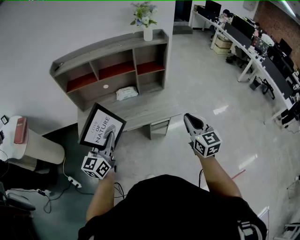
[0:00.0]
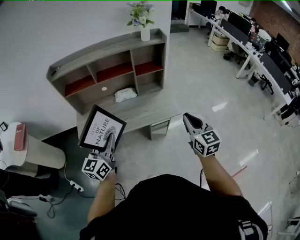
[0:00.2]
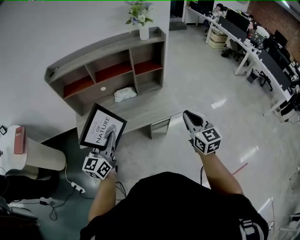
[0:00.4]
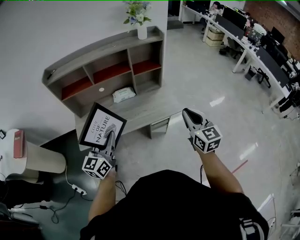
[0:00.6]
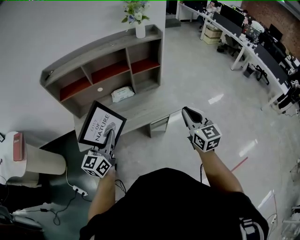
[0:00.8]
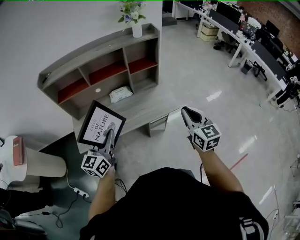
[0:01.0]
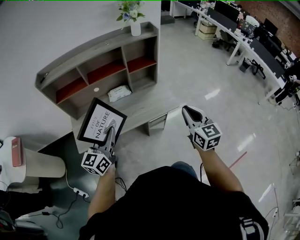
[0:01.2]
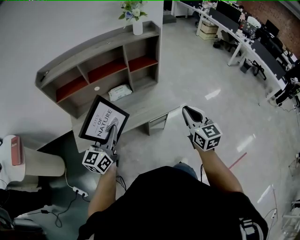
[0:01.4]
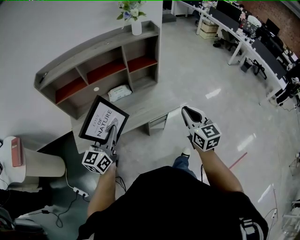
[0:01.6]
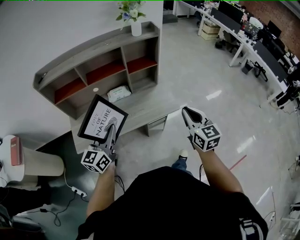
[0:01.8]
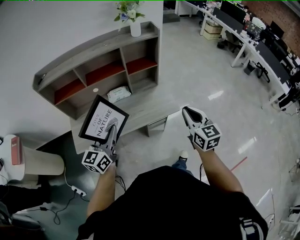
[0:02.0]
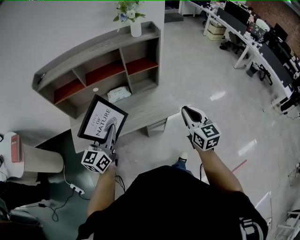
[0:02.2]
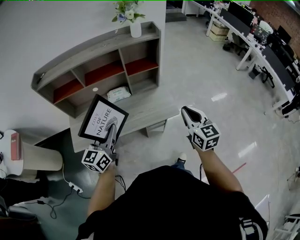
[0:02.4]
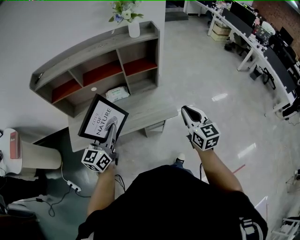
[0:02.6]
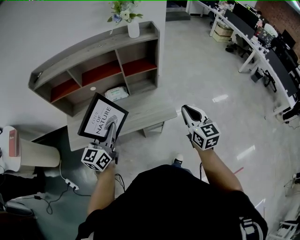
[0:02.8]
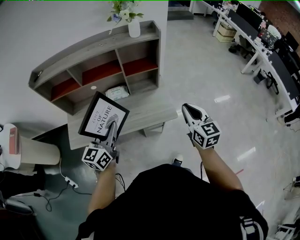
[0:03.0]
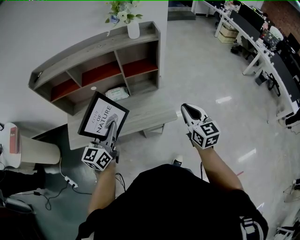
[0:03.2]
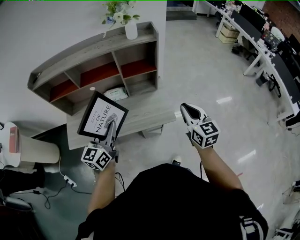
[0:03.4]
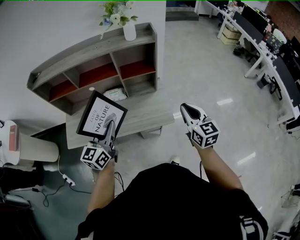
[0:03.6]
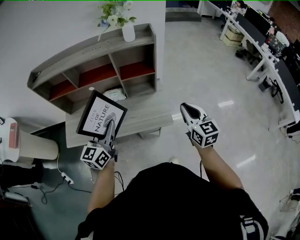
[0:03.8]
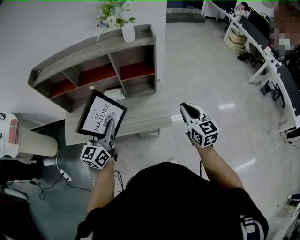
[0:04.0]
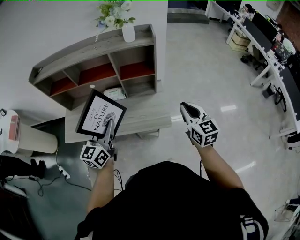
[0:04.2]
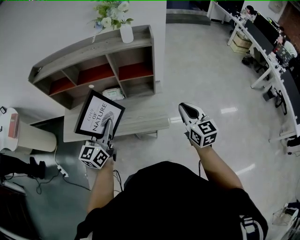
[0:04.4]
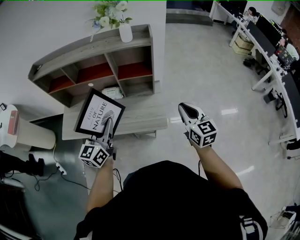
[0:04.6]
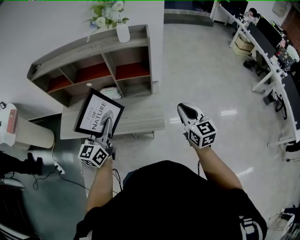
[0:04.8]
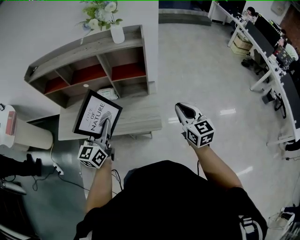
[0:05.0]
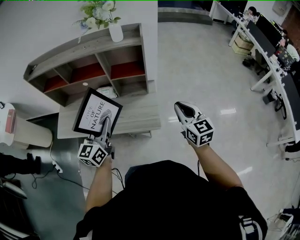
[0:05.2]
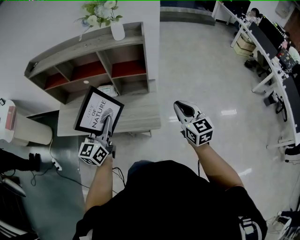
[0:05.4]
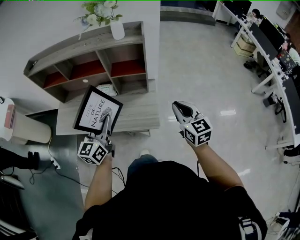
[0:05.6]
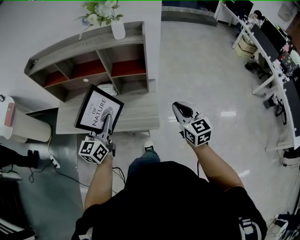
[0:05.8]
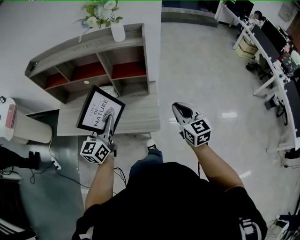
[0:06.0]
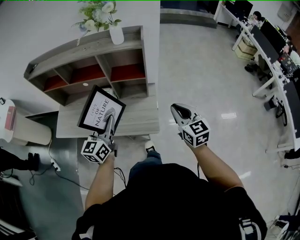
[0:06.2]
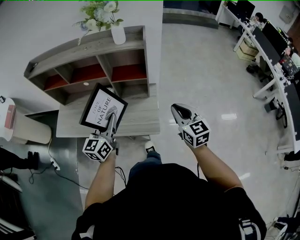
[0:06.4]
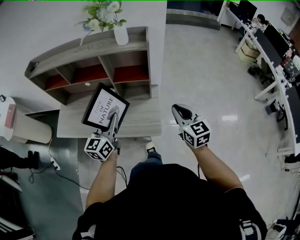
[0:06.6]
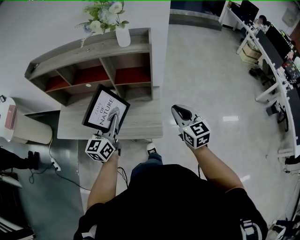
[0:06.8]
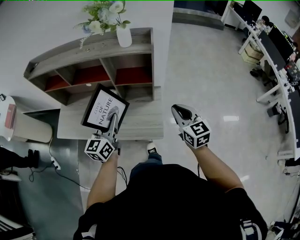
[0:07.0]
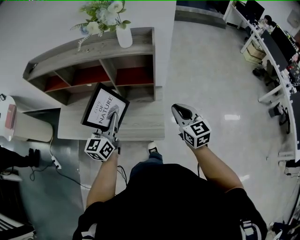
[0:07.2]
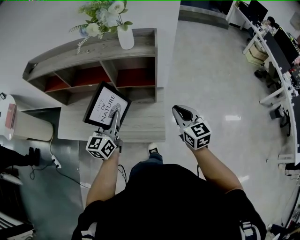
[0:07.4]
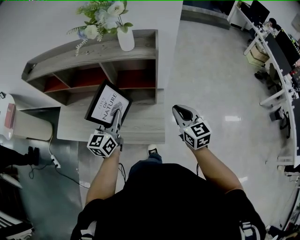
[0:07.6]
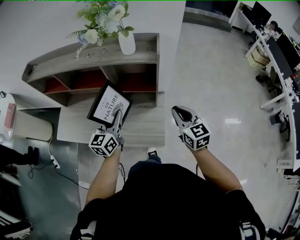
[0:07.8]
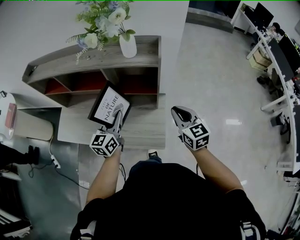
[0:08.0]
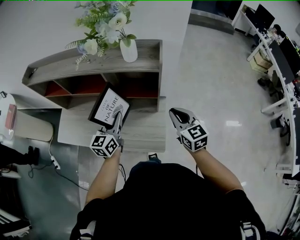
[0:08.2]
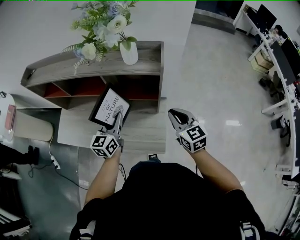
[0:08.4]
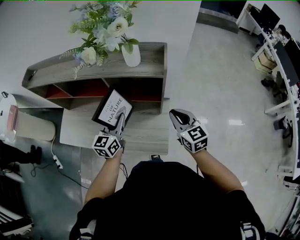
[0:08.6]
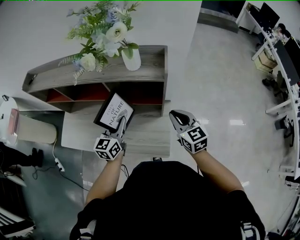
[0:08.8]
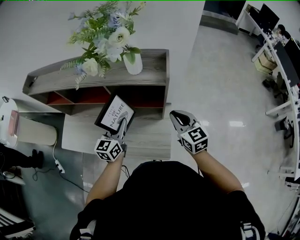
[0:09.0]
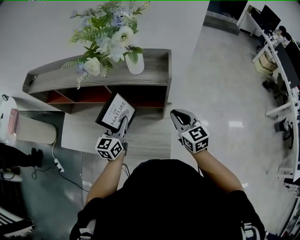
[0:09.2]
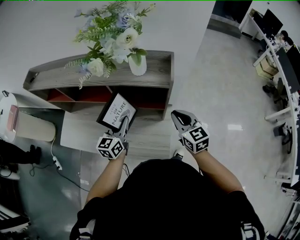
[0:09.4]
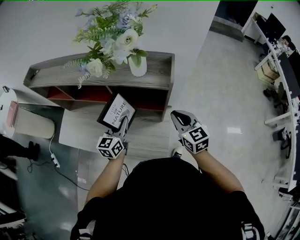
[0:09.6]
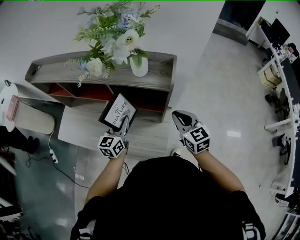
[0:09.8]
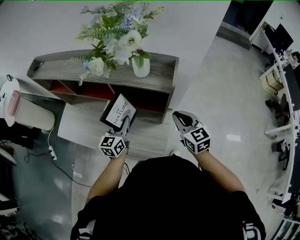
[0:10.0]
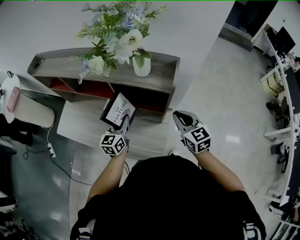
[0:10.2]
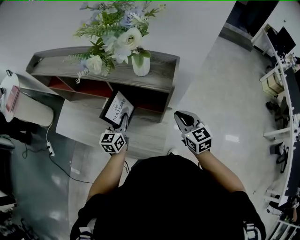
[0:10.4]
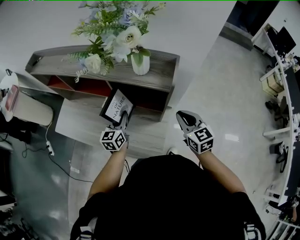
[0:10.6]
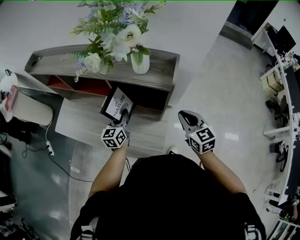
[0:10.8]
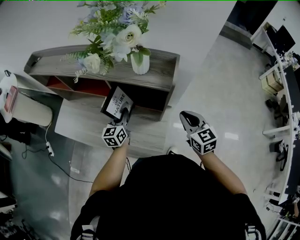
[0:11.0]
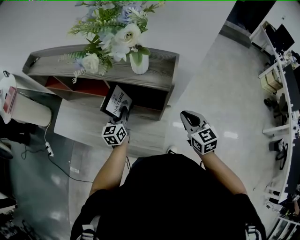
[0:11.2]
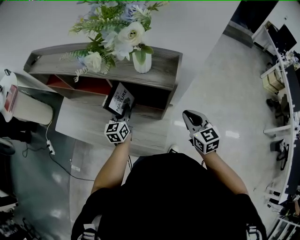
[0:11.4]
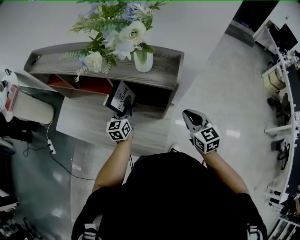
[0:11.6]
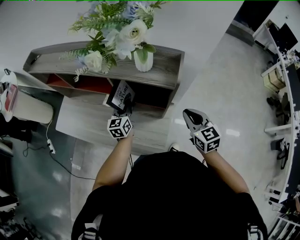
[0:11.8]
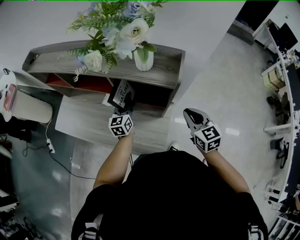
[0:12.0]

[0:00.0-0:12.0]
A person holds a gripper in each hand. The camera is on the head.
0:00.0 to 0:01.6: The right gripper changes place by about 5 cm; the left gripper heads forward, covering approximately 10 cm.
0:01.6 to 0:03.0: The two grippers go about 15 cm forward and to the right.
0:03.0 to 0:04.4: The right gripper goes some 10 cm to the right and forward, while the left gripper moves to the right, about 10 cm.
0:04.4 to 0:06.0: The left gripper travels to the right by approximately 5 cm. Meanwhile the right gripper shifts by approximately 5 cm.
0:06.0 to 0:07.6: Both grippers travel together forward, approximately 15 cm.
0:07.6 to 0:09.0: The grippers both shift forward by about 10 cm.
0:09.0 to 0:10.4: The left gripper changes place by some 5 cm.
0:10.4 to 0:12.0: The left gripper is displaced forward by roughly 5 cm.

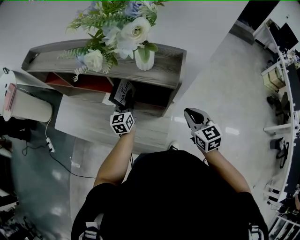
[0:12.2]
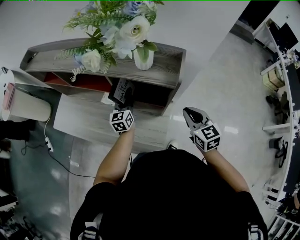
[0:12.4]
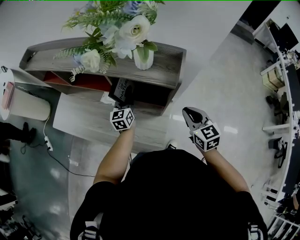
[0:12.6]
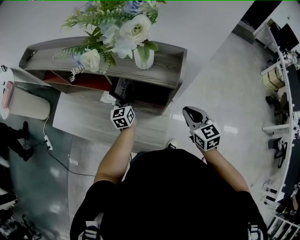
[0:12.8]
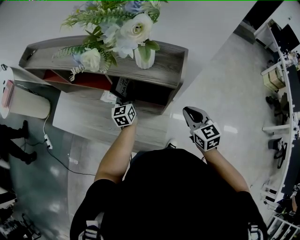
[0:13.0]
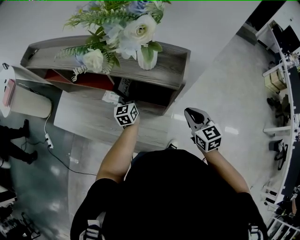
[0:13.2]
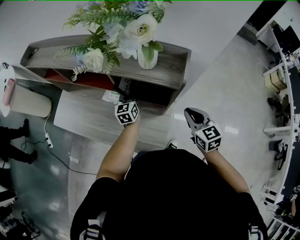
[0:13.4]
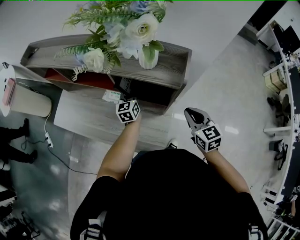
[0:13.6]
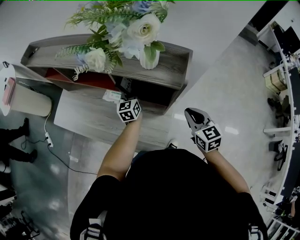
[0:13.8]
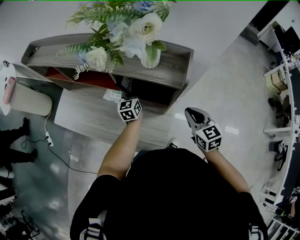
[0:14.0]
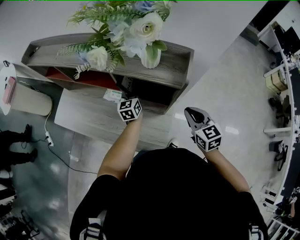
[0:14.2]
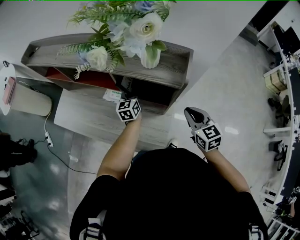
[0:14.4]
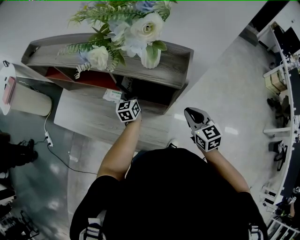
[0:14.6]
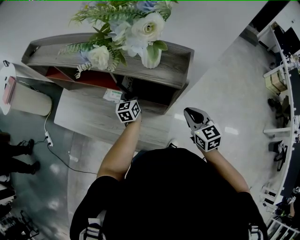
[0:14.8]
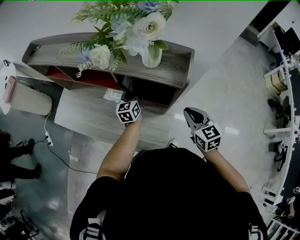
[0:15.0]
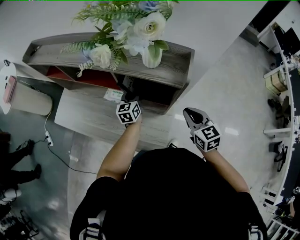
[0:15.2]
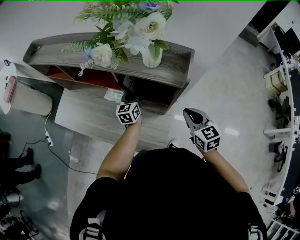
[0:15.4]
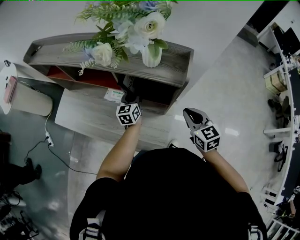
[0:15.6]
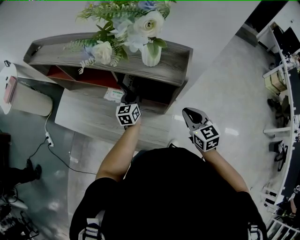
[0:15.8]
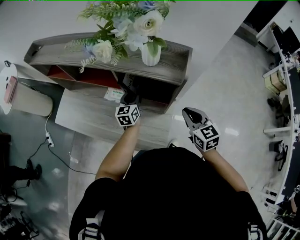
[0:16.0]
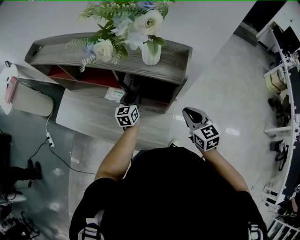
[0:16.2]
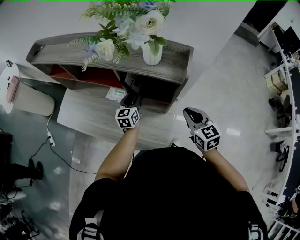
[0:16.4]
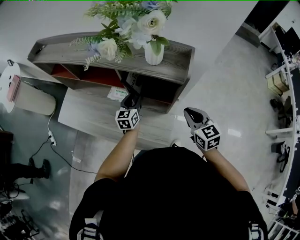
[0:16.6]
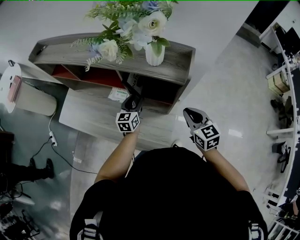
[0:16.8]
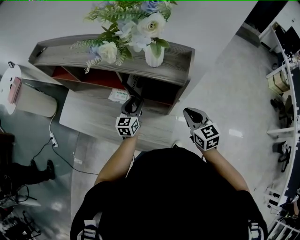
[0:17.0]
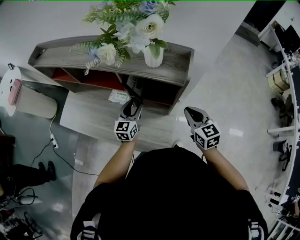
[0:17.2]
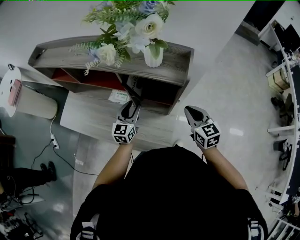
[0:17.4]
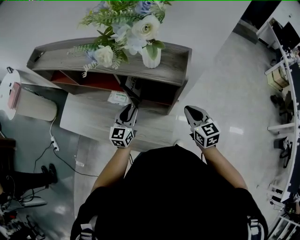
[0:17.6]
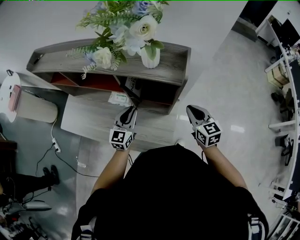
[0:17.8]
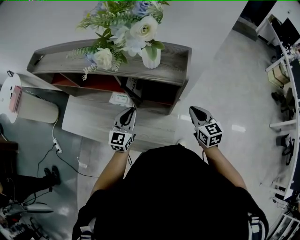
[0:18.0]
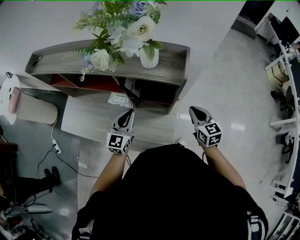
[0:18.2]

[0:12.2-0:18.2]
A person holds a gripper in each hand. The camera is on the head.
0:12.2 to 0:13.8: The left gripper ends up some 5 cm from where it was.
0:13.8 to 0:15.2: The grippers move only a little.
0:15.2 to 0:16.6: The left gripper moves about 5 cm, and opens up.
0:16.6 to 0:18.2: The left gripper goes roughly 10 cm backward and upward, changes its angle by approximately 20 degrees, and closes.

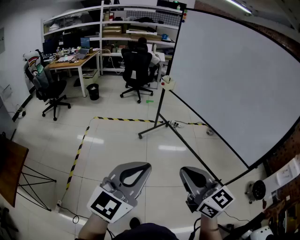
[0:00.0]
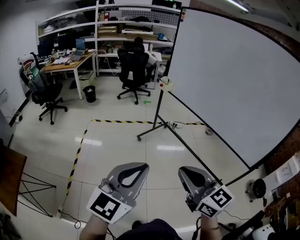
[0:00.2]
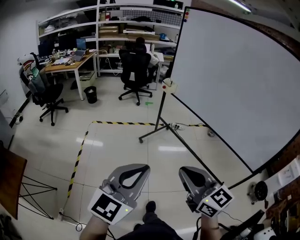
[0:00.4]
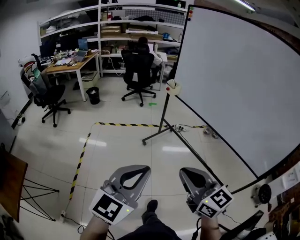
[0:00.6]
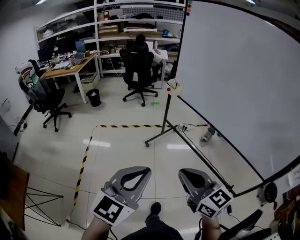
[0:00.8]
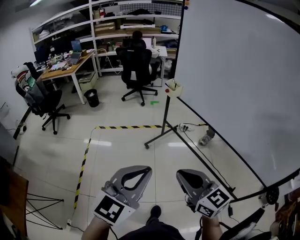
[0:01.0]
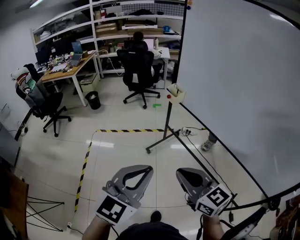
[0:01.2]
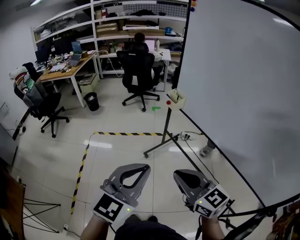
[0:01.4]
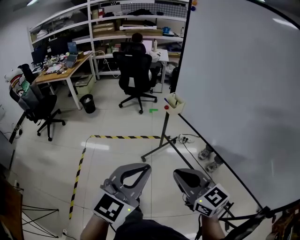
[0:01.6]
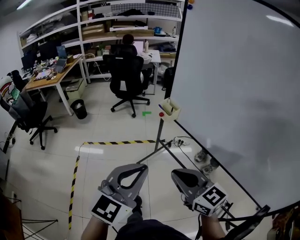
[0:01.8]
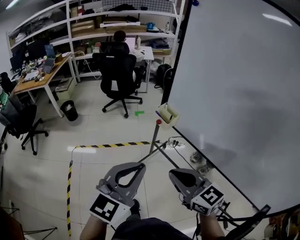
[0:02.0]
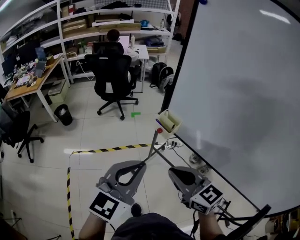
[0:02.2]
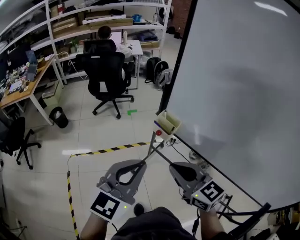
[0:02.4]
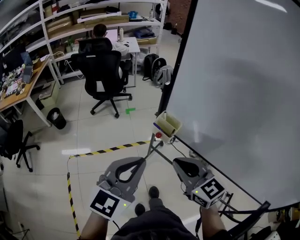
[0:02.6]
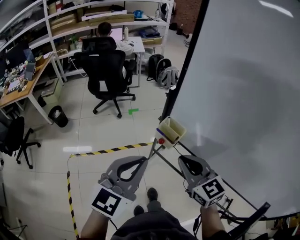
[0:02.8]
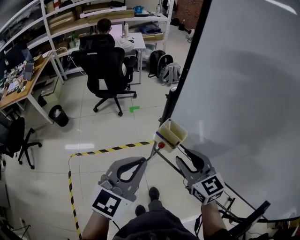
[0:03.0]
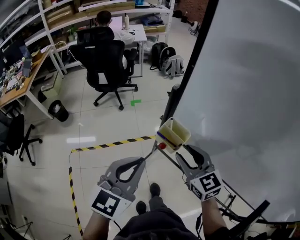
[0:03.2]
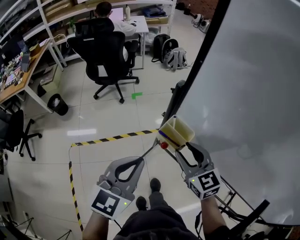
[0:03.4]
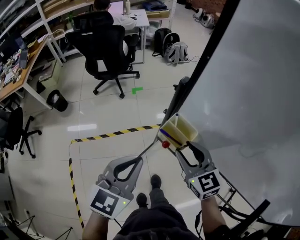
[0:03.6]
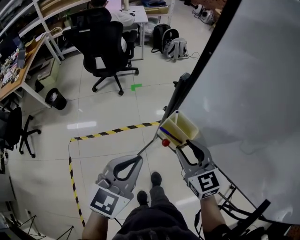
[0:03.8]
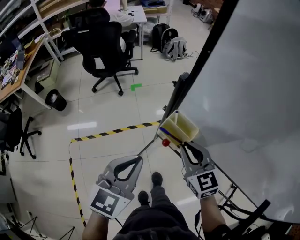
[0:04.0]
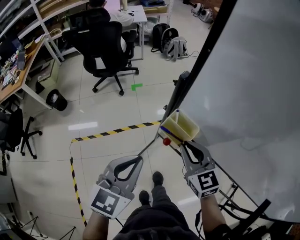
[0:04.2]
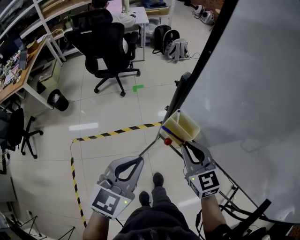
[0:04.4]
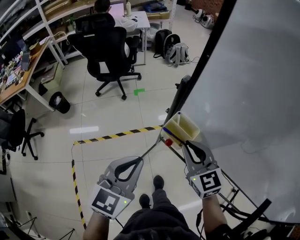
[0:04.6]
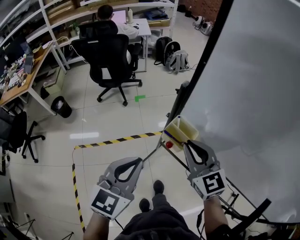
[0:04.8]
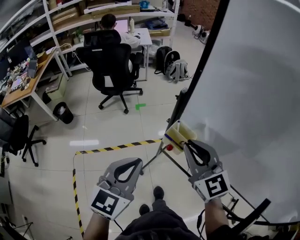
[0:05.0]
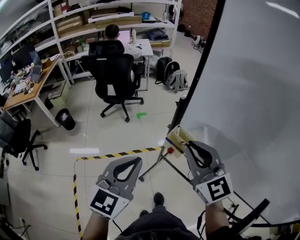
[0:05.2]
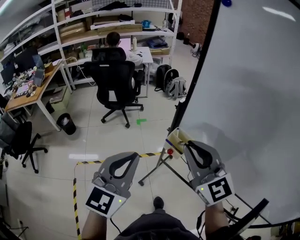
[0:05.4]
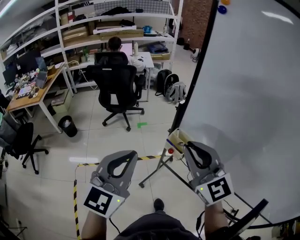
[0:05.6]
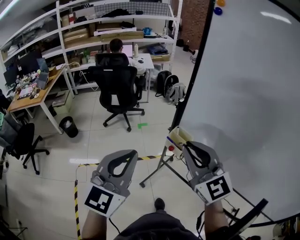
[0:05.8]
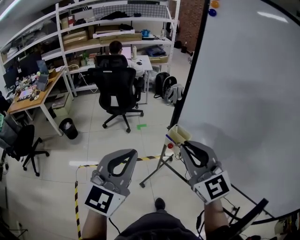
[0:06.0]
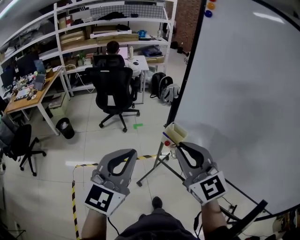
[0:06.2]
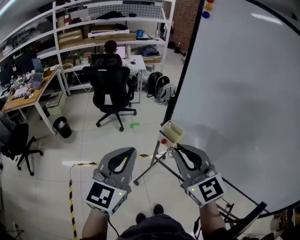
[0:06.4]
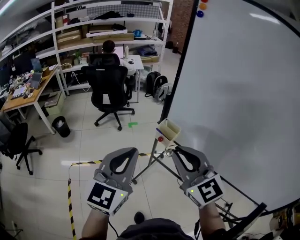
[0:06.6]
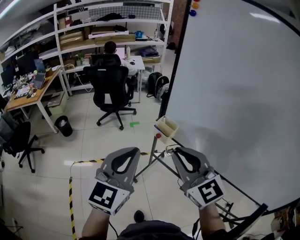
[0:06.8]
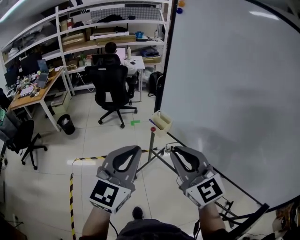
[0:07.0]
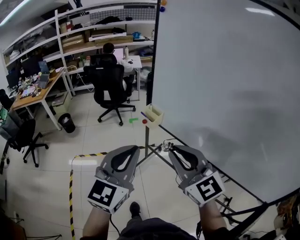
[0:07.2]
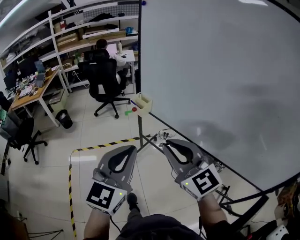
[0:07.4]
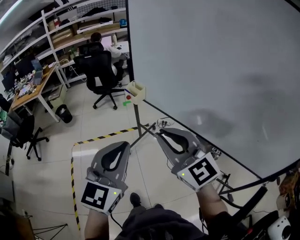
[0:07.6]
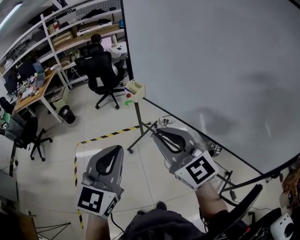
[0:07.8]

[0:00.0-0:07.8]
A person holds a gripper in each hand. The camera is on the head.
0:00.0 to 0:01.6: The pair of grippers is taken forward, some 50 cm.
0:01.6 to 0:03.2: The two grippers travel together, forward, some 40 cm. The right gripper swivels about 30 degrees, and opens up.
0:03.2 to 0:04.6: The right gripper closes up, while the left gripper goes some 5 cm downward.
0:04.6 to 0:06.2: Both grippers travel together upward and backward, some 25 cm. The right gripper rotates approximately 20 degrees, while the left gripper turns by roughly 20 degrees.
0:06.2 to 0:07.8: The grippers both shift backward and to the right by some 35 cm.
